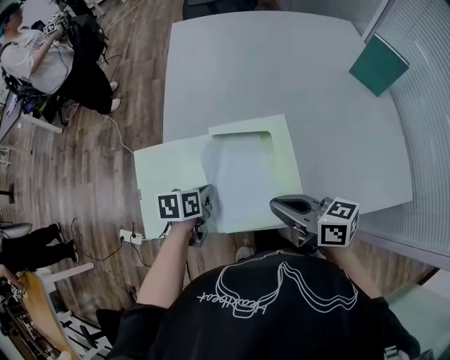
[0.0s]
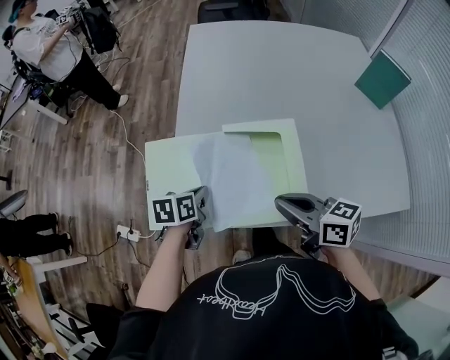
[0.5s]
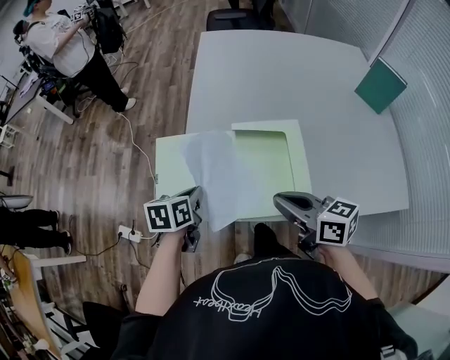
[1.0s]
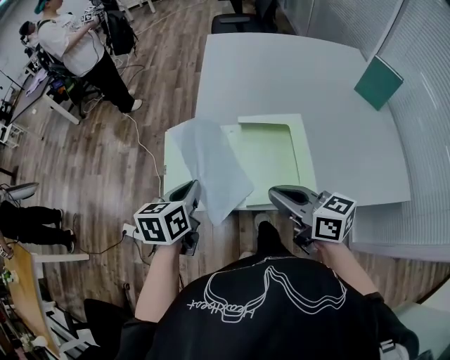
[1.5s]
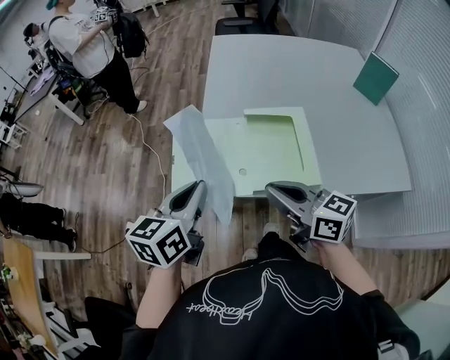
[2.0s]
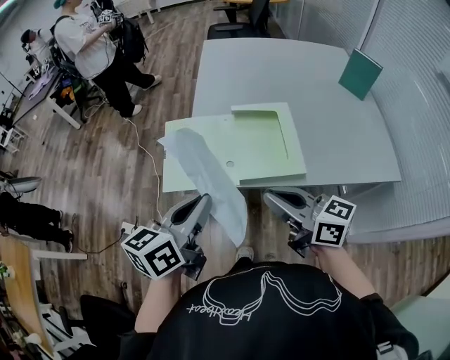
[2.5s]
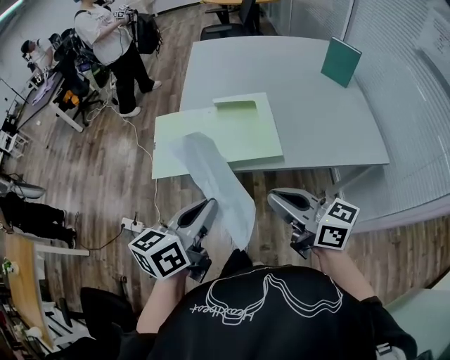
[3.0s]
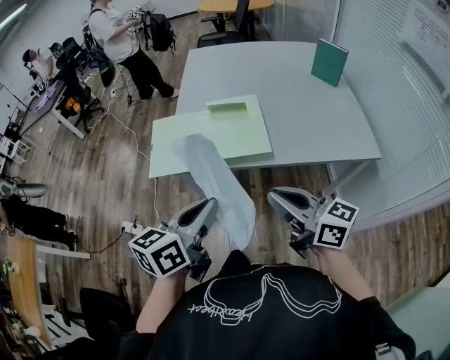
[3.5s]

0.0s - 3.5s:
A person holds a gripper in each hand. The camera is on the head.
0.0s - 2.0s: The left gripper heads upward, backward and to the left, covering roughly 30 cm, and tips its fingers upward by about 30 degrees. Meanwhile the right gripper moves to the left, backward and upward, about 20 cm.
2.0s - 3.5s: Both grippers move backward and to the right, some 25 cm.

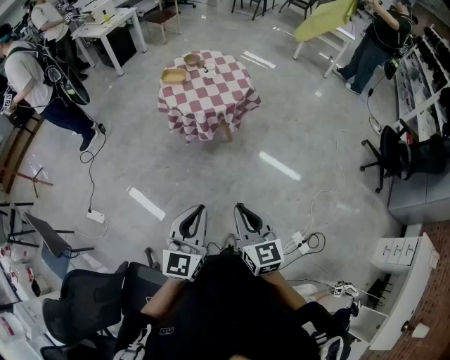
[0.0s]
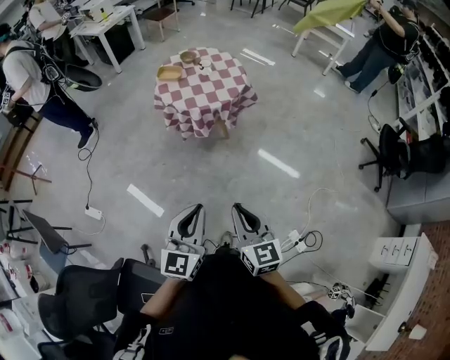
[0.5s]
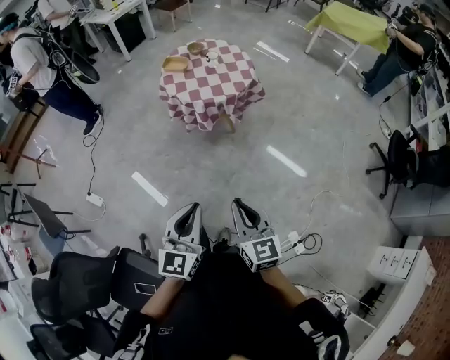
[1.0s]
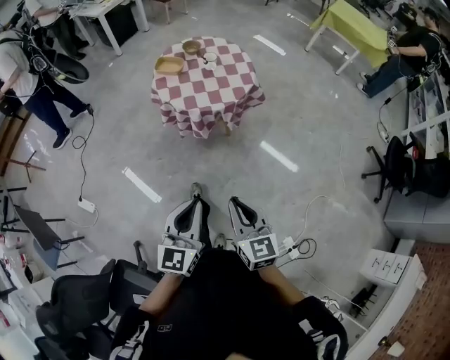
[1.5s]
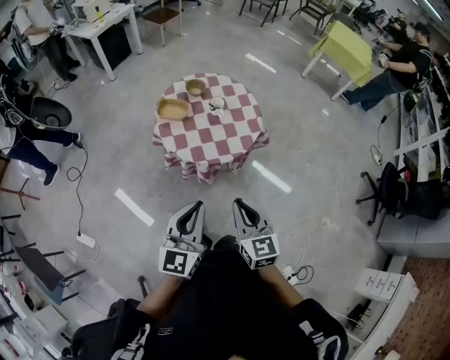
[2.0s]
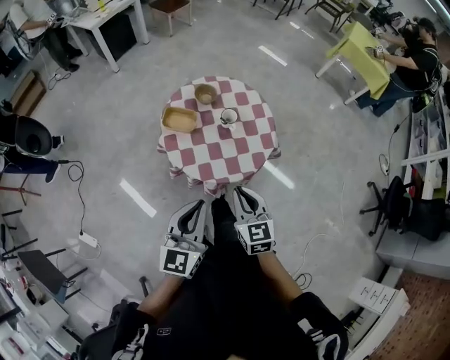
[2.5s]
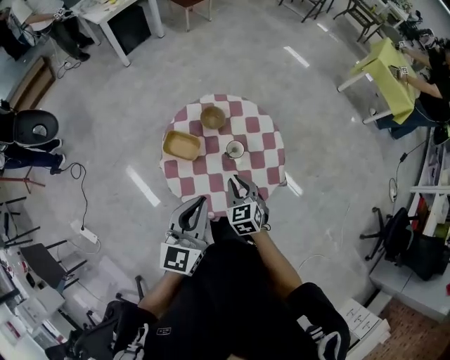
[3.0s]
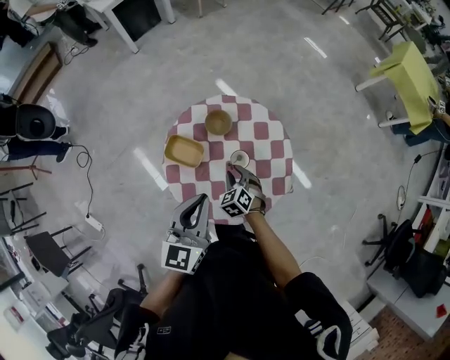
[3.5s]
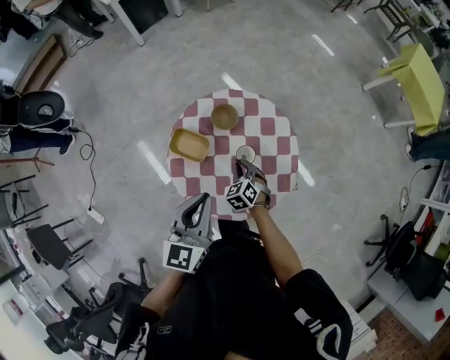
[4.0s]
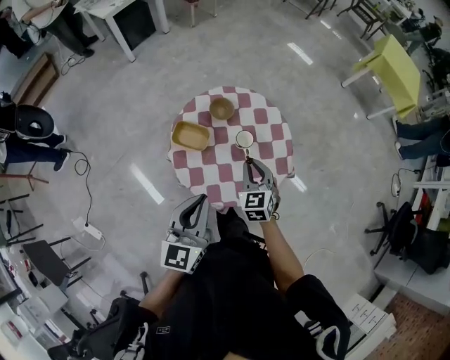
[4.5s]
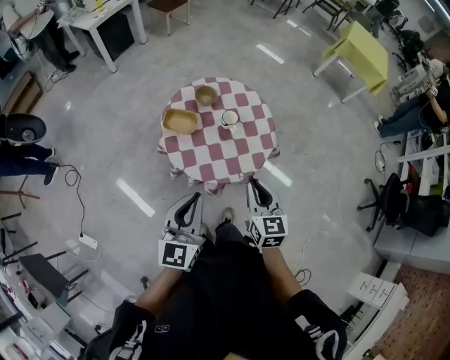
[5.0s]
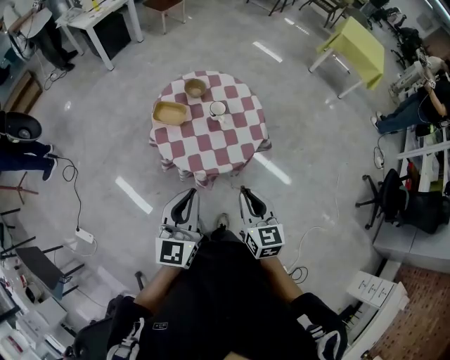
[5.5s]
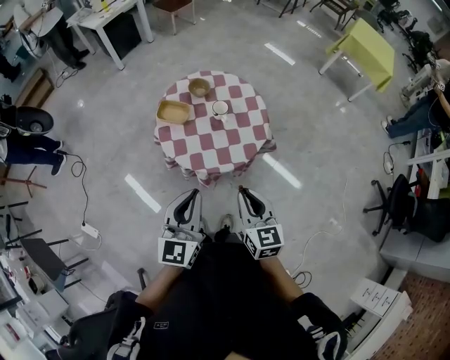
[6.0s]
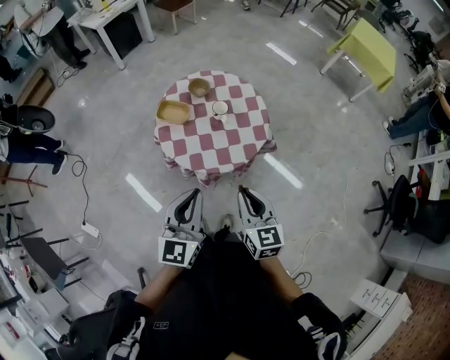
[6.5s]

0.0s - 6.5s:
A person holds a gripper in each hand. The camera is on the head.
0.0s - 2.0s: Both grippers move forward, some 35 cm.
2.0s - 4.5s: The two grippers go about 35 cm forward. The right gripper rotates roughly 20 degrees.
4.5s - 6.5s: The right gripper shifts roughly 30 cm backward and upward, and swivels roughly 30 degrees. Meanwhile the left gripper moves backward and to the right, some 20 cm.

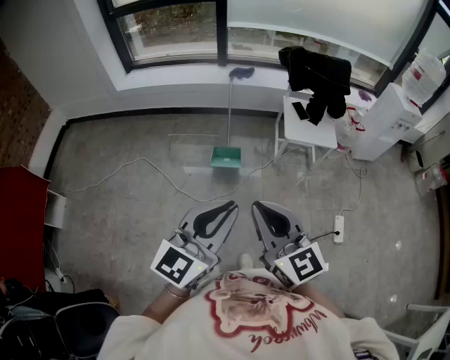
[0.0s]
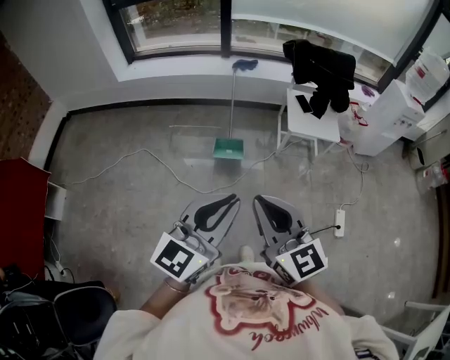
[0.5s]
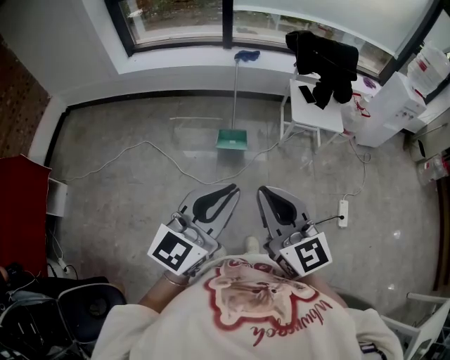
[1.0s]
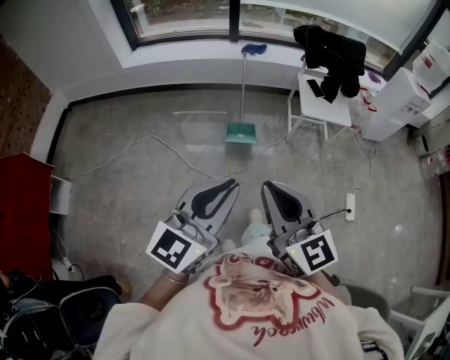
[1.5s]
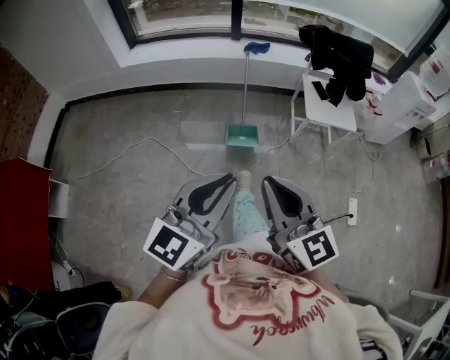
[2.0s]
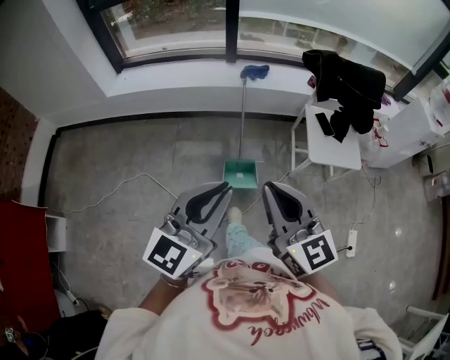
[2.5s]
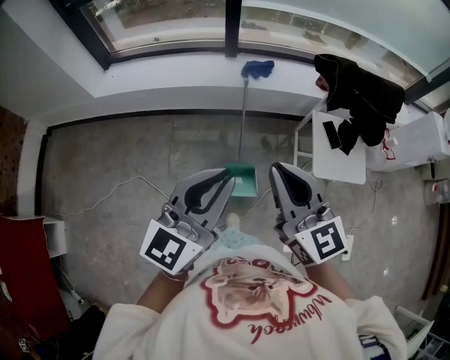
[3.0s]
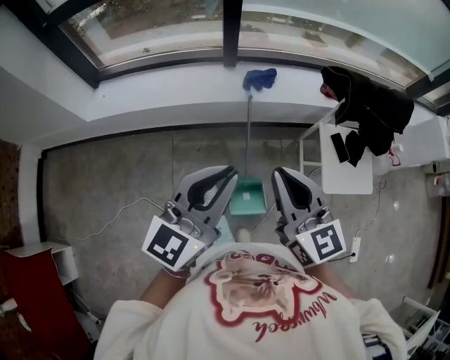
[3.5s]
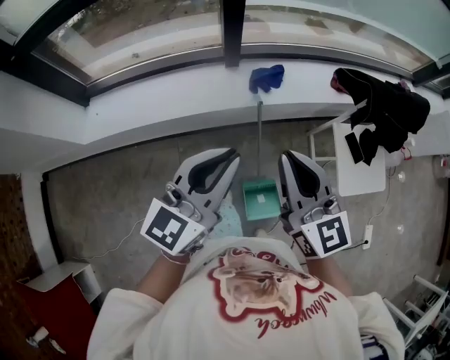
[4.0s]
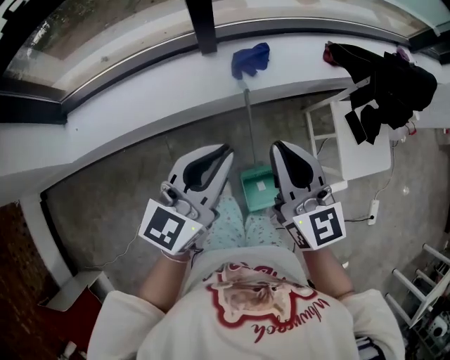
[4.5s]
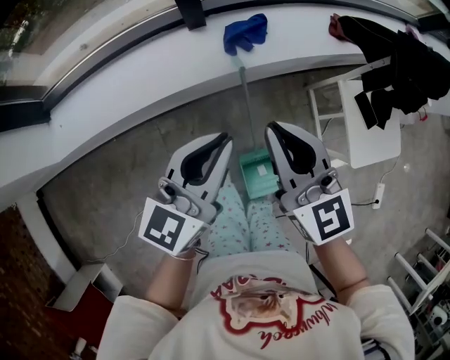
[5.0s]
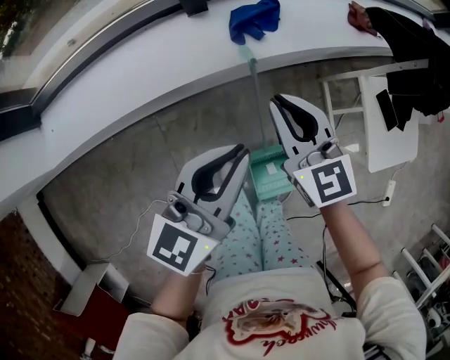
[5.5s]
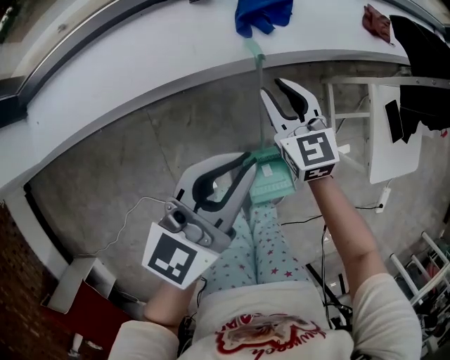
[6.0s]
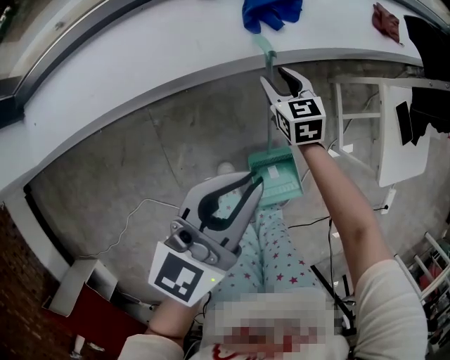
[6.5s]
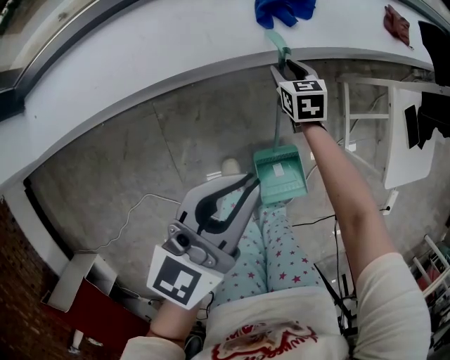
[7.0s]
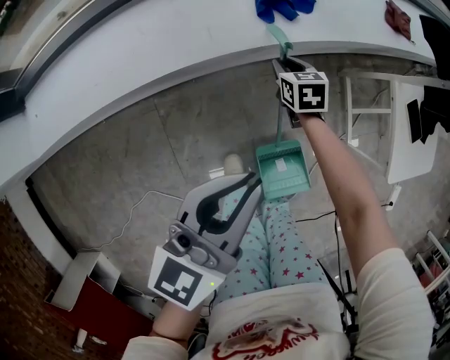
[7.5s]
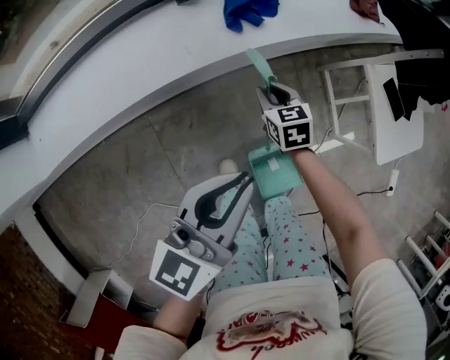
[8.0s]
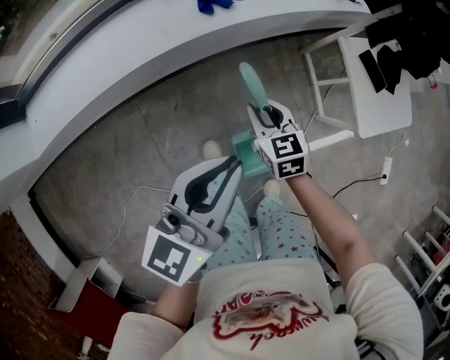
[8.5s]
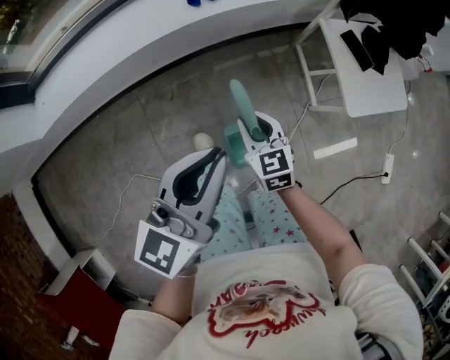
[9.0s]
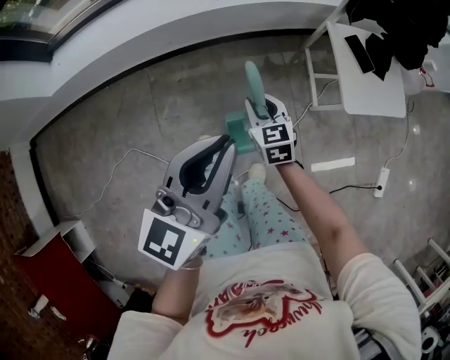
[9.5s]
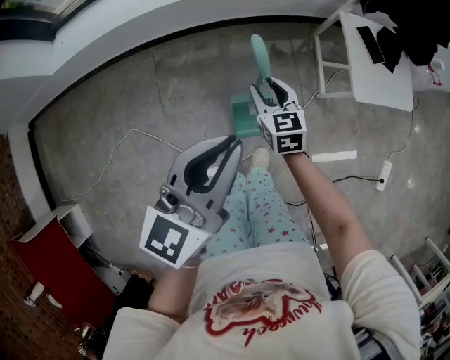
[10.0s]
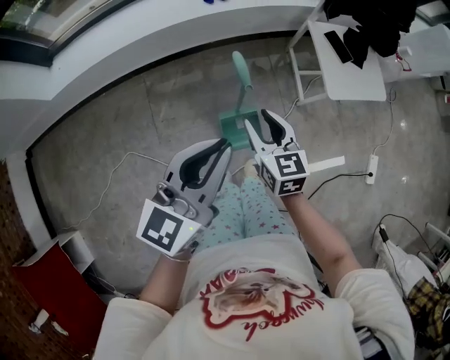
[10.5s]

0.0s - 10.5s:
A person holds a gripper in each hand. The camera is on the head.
0.0s - 2.0s: The grippers both shift to the left by some 10 cm.
2.0s - 4.0s: The pair of grippers is taken forward, approximately 80 cm.
4.0s - 6.5s: The right gripper moves downward and forward, some 60 cm, points its fingers some 40 degrees further downward, and opens its fingers. Meanwhile the left gripper travels downward by about 30 cm.
6.5s - 8.5s: The left gripper heads backward, to the right and upward, covering approximately 15 cm, while the right gripper travels backward, upward and to the right by some 25 cm.
8.5s - 10.5s: The left gripper moves backward, some 25 cm; the right gripper is displaced backward and upward by some 30 cm, and opens up.

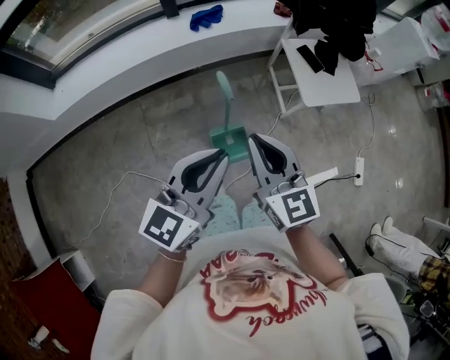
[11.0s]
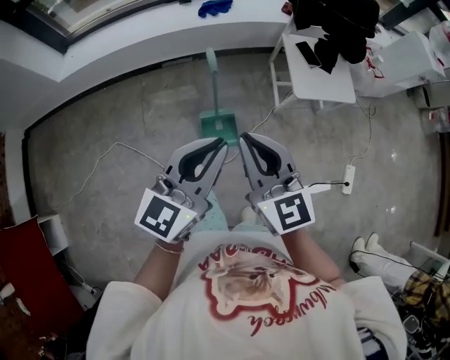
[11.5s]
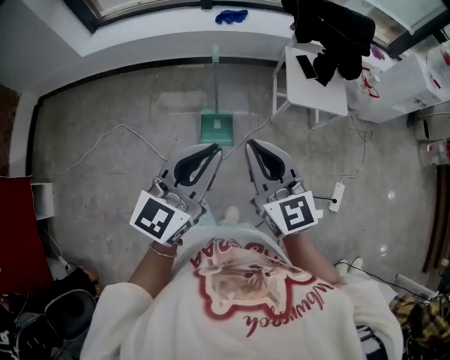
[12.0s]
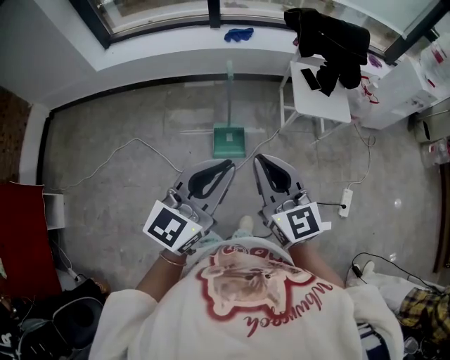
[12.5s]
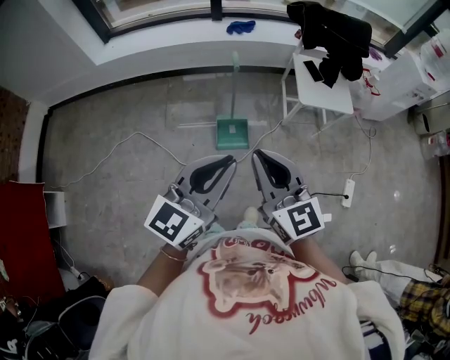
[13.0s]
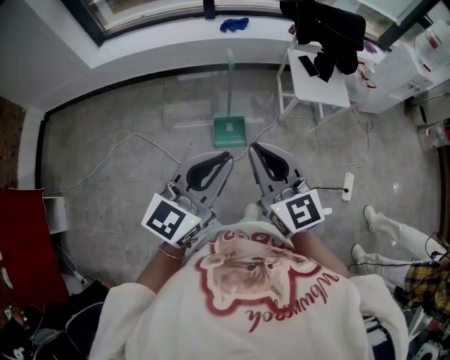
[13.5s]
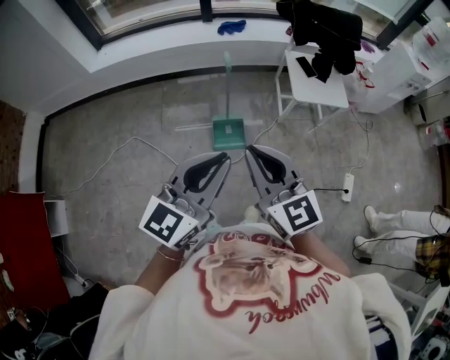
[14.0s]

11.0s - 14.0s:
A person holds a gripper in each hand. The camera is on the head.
11.0s - 12.5s: Both grippers move backward and to the right, about 30 cm.
12.5s - 14.0s: The right gripper moves approximately 5 cm.

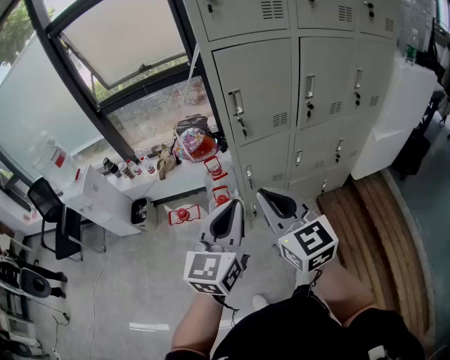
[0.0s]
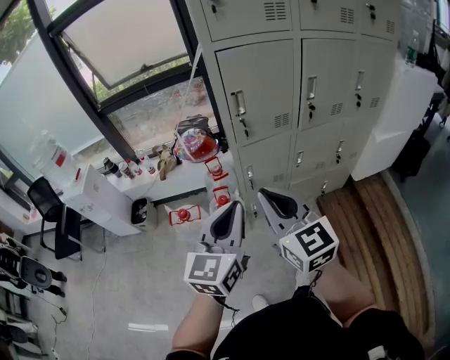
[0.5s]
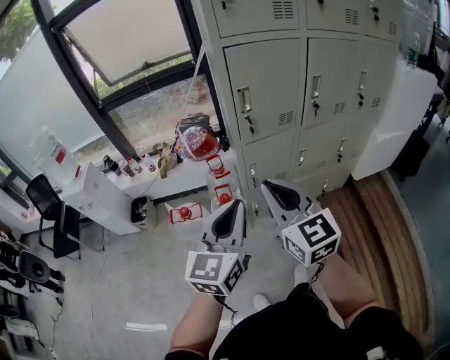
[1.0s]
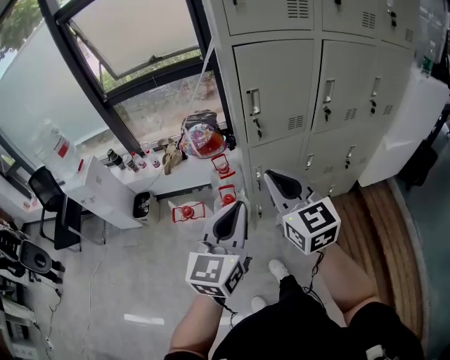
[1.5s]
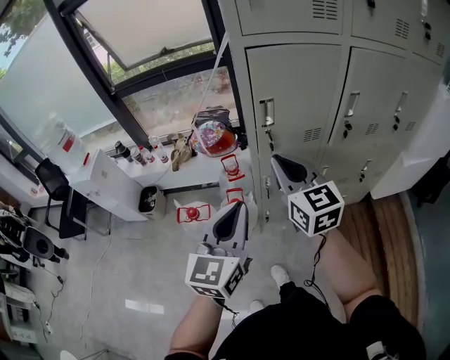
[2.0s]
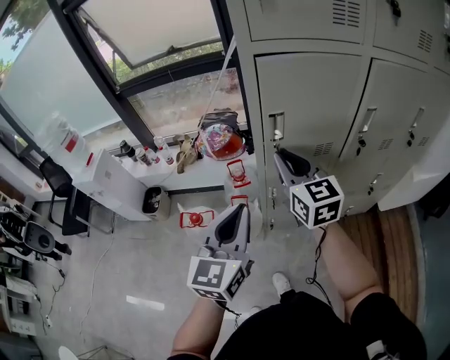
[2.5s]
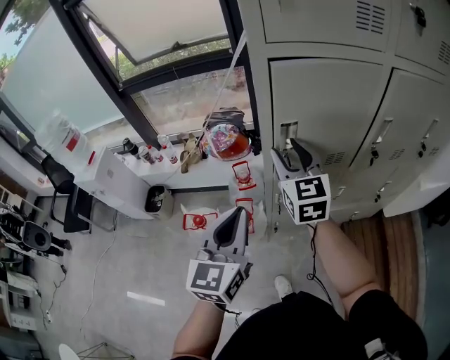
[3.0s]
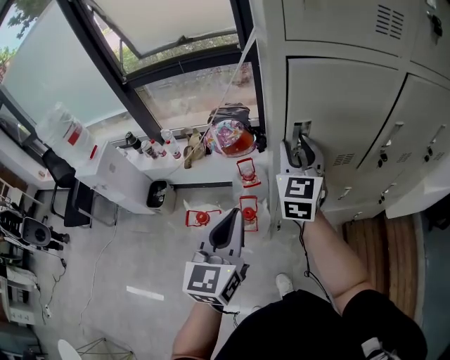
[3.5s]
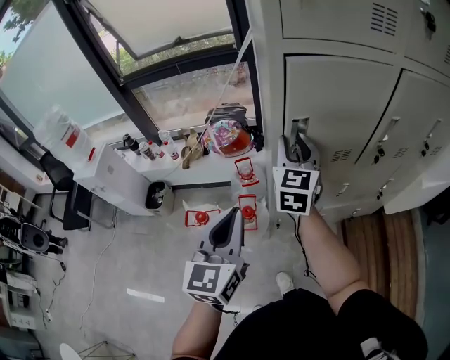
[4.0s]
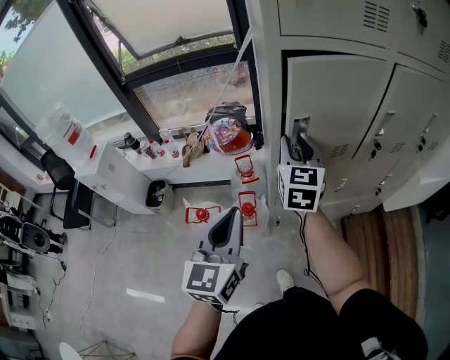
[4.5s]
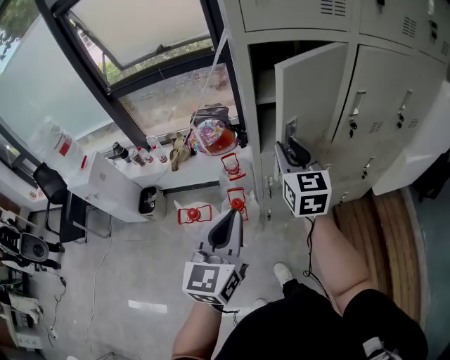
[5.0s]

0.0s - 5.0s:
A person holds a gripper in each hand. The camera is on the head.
0.0s - 2.5s: The left gripper travels forward by about 15 cm. The right gripper goes about 25 cm forward.
2.5s - 5.0s: The left gripper ends up some 5 cm from where it was. Meanwhile the right gripper moves approximately 10 cm forward and comes back.
